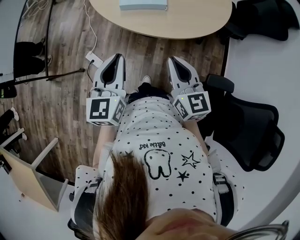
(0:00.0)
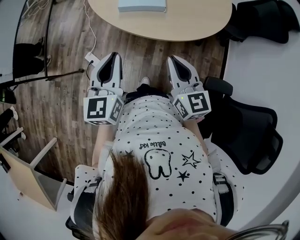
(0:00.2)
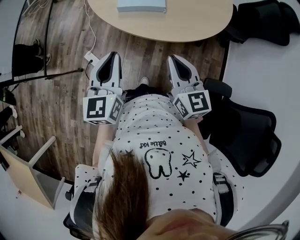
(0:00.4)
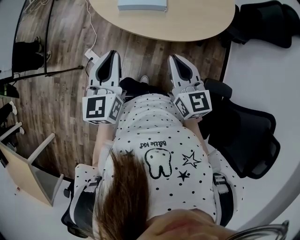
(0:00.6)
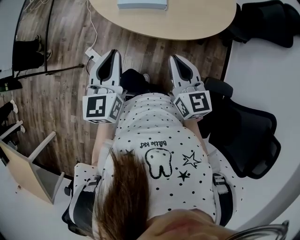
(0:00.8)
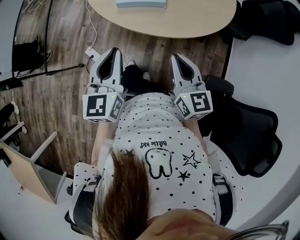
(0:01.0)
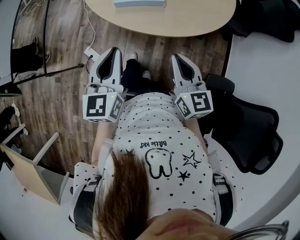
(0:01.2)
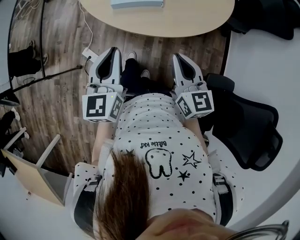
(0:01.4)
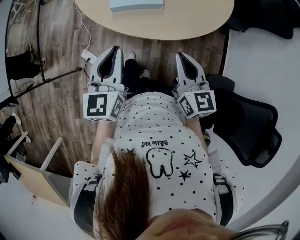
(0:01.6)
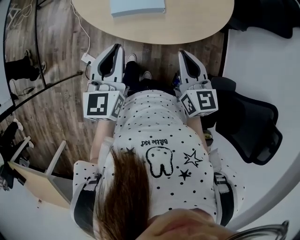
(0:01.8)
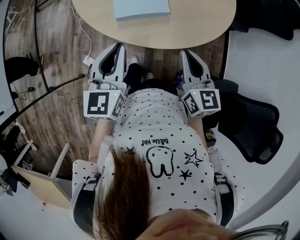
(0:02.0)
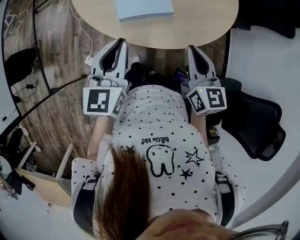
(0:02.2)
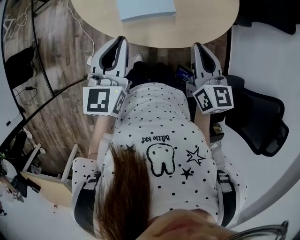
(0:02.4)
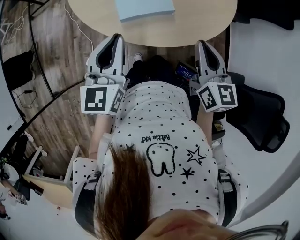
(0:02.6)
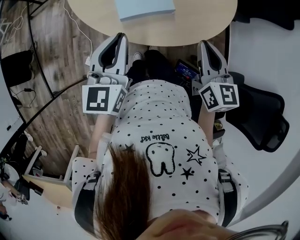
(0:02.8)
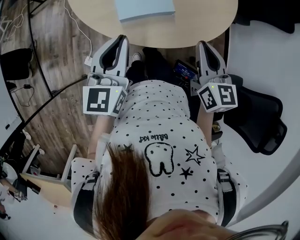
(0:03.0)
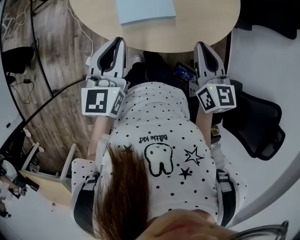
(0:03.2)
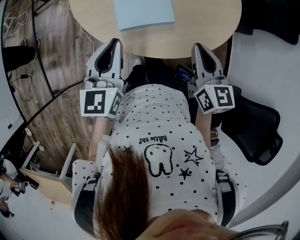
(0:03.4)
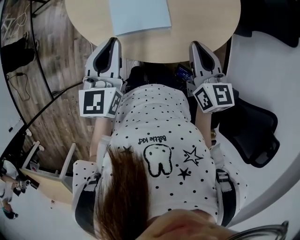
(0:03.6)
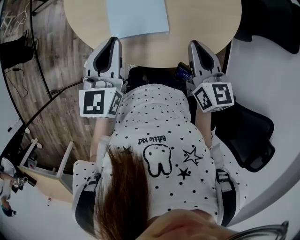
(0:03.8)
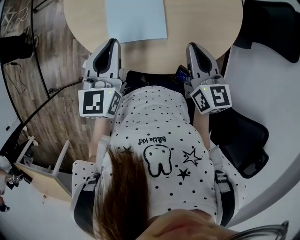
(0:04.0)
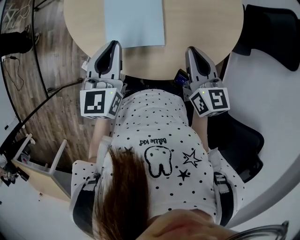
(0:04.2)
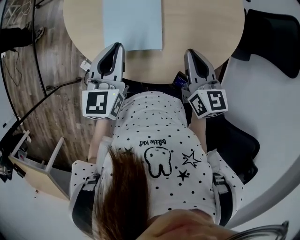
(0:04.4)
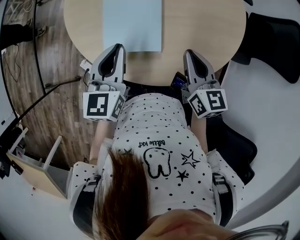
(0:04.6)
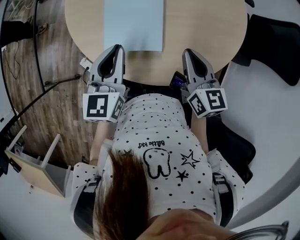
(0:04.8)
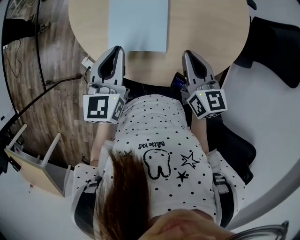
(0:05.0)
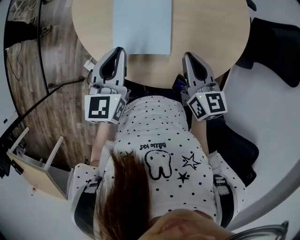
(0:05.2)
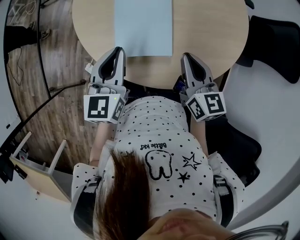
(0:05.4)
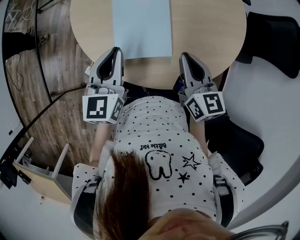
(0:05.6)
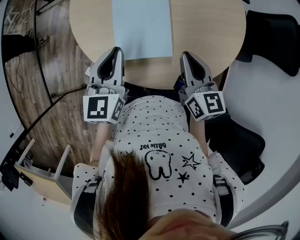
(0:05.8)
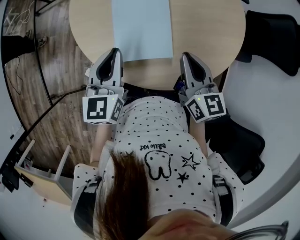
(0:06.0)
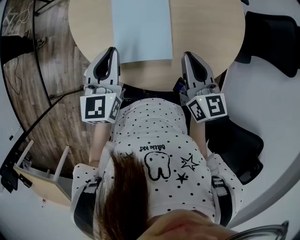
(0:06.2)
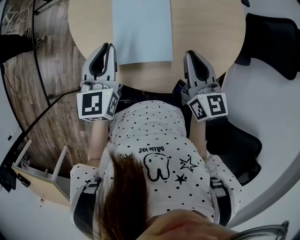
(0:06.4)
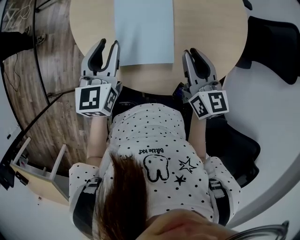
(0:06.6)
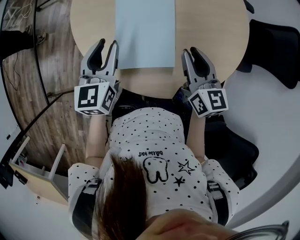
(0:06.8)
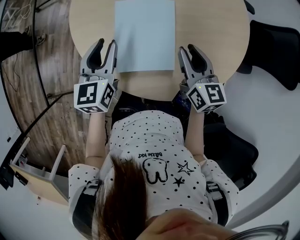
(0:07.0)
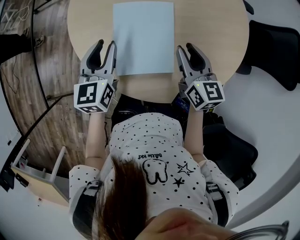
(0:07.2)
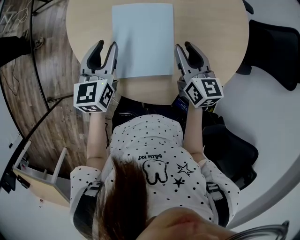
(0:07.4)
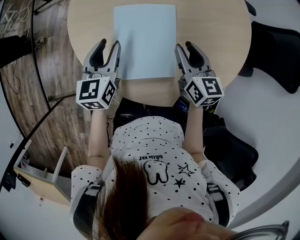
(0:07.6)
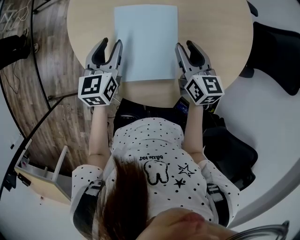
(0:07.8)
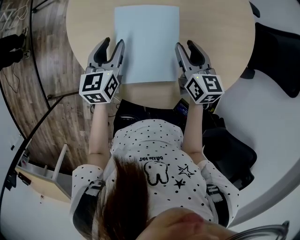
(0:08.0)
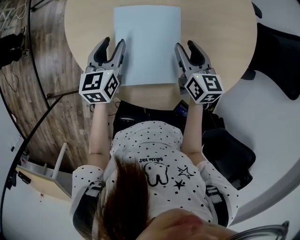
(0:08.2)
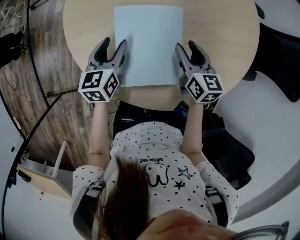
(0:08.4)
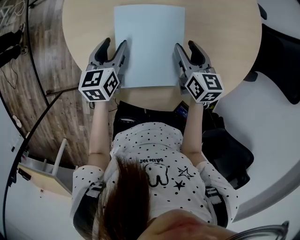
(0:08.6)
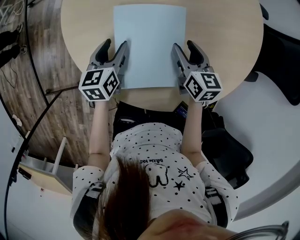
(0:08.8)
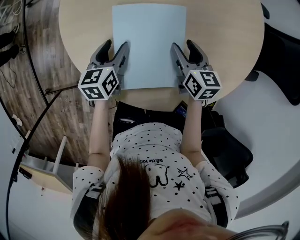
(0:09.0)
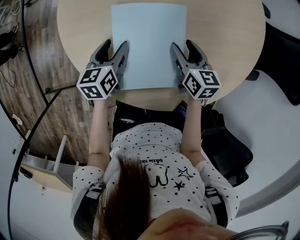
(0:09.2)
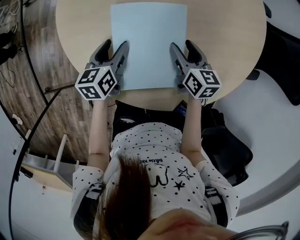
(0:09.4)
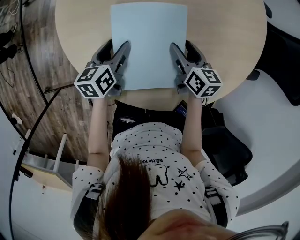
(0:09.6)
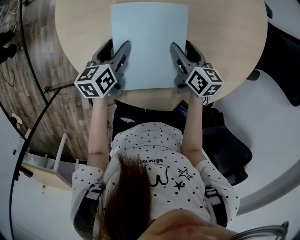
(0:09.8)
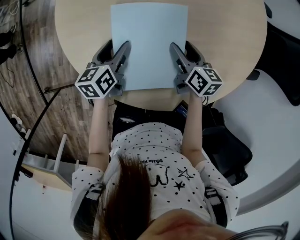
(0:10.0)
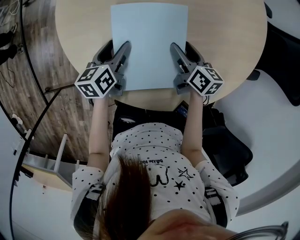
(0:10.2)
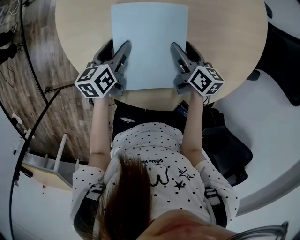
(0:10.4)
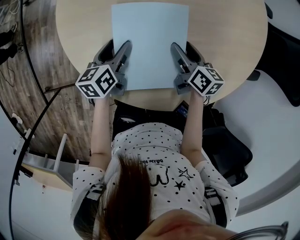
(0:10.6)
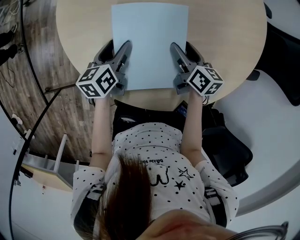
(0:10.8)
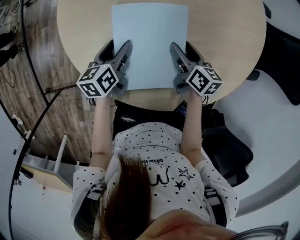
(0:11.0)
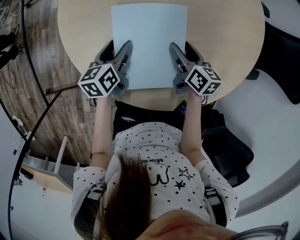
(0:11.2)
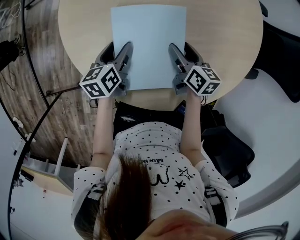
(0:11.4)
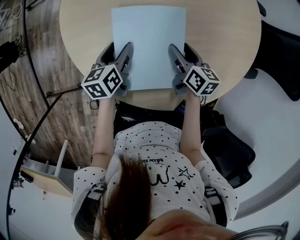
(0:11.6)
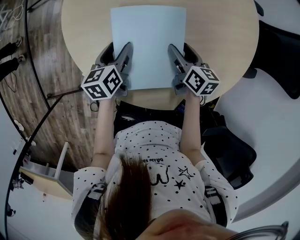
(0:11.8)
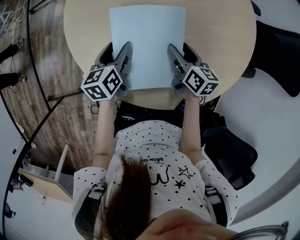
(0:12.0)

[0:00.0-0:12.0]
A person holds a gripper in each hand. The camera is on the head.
0:00.0 to 0:01.6: Both grippers travel together forward, approximately 10 cm.
0:01.6 to 0:03.0: Both grippers move forward, some 10 cm.
0:03.0 to 0:04.4: Both grippers travel together forward, some 15 cm.
0:04.4 to 0:06.0: The grippers make only small movements.
0:06.0 to 0:07.6: The grippers both shift forward and downward by approximately 15 cm. The right gripper opens up; the left gripper opens up.
0:07.6 to 0:09.0: Both grippers travel together downward, some 10 cm. The left gripper changes its angle by some 20 degrees.
0:09.0 to 0:10.4: The grippers move only a little.
0:10.4 to 0:12.0: The left gripper shifts by approximately 5 cm.

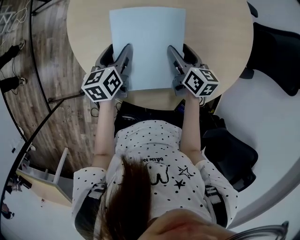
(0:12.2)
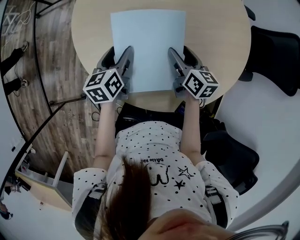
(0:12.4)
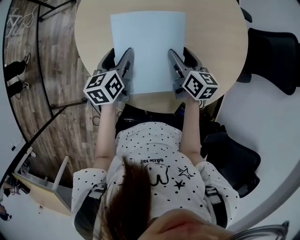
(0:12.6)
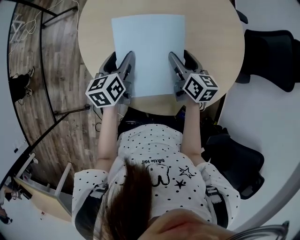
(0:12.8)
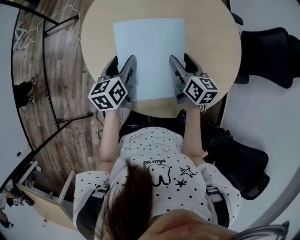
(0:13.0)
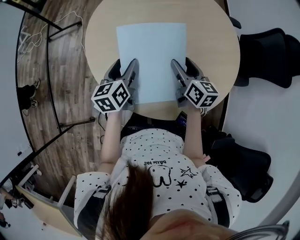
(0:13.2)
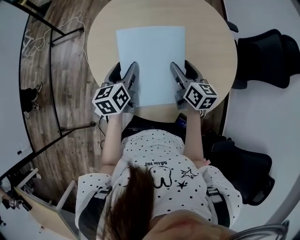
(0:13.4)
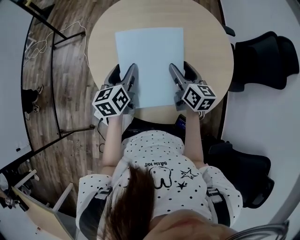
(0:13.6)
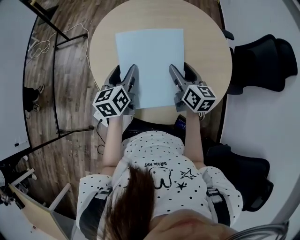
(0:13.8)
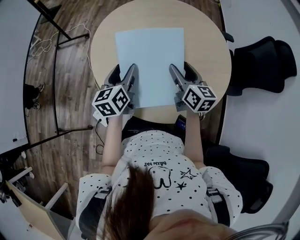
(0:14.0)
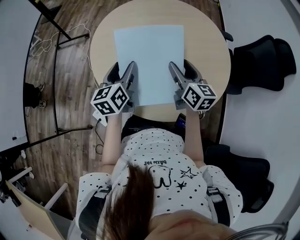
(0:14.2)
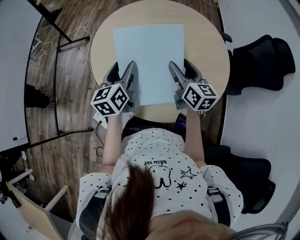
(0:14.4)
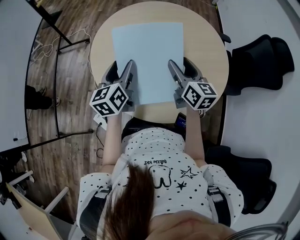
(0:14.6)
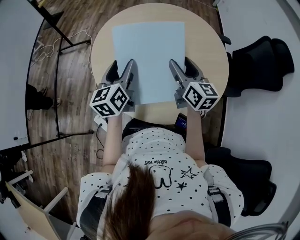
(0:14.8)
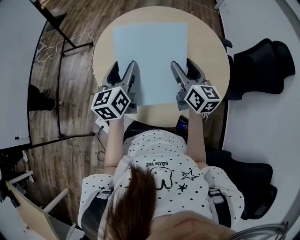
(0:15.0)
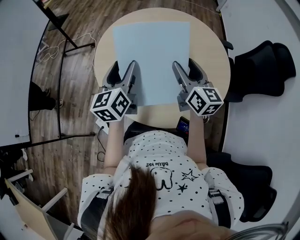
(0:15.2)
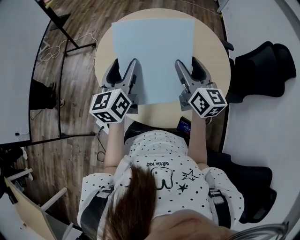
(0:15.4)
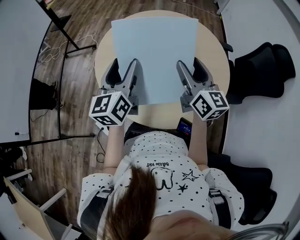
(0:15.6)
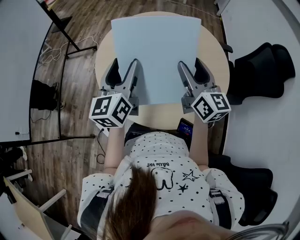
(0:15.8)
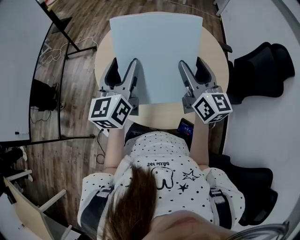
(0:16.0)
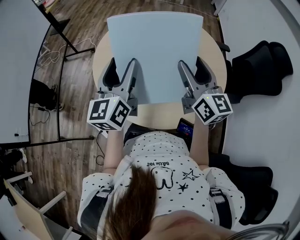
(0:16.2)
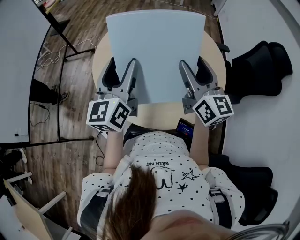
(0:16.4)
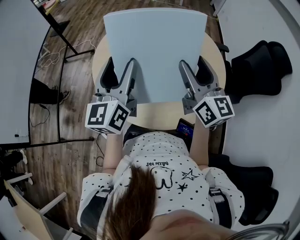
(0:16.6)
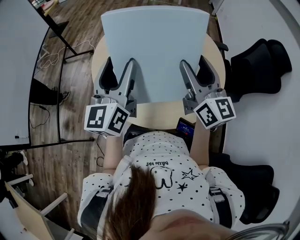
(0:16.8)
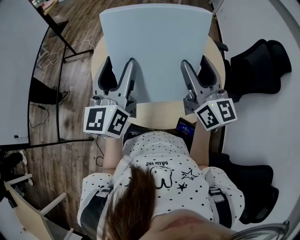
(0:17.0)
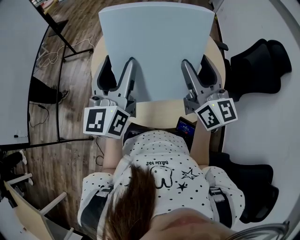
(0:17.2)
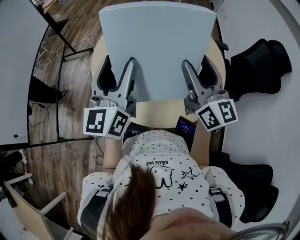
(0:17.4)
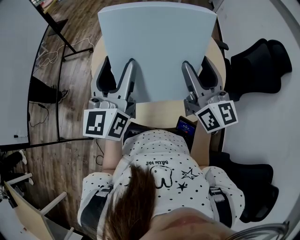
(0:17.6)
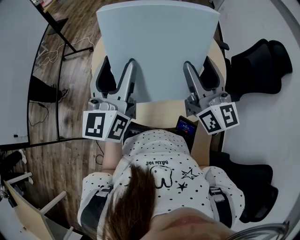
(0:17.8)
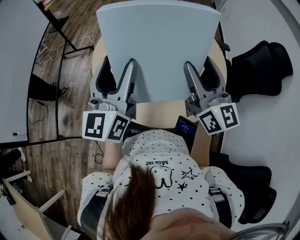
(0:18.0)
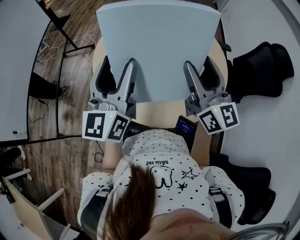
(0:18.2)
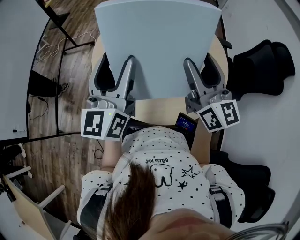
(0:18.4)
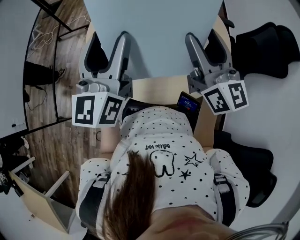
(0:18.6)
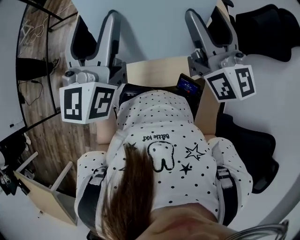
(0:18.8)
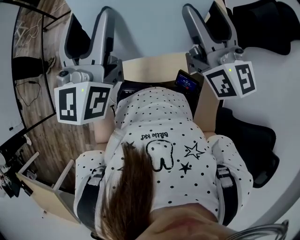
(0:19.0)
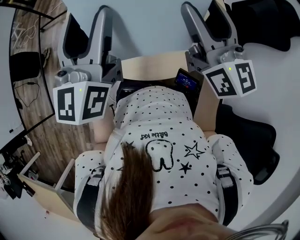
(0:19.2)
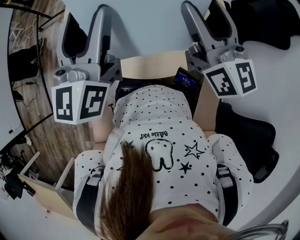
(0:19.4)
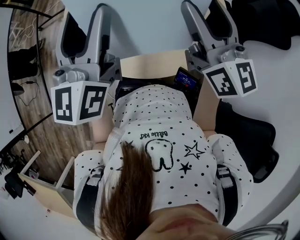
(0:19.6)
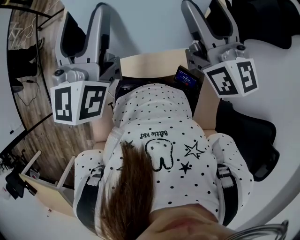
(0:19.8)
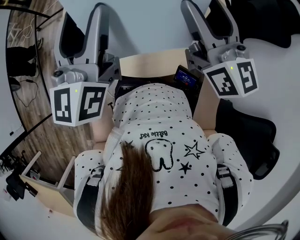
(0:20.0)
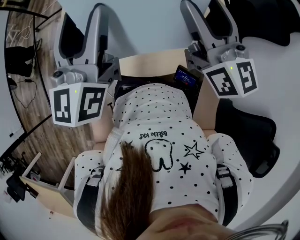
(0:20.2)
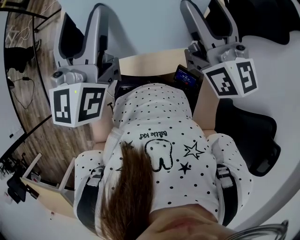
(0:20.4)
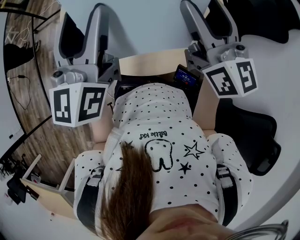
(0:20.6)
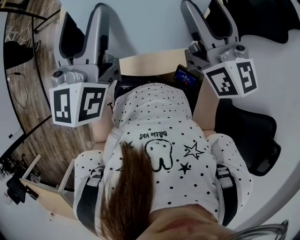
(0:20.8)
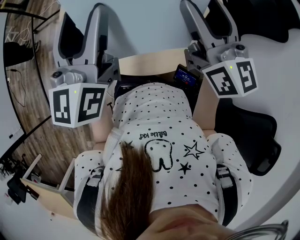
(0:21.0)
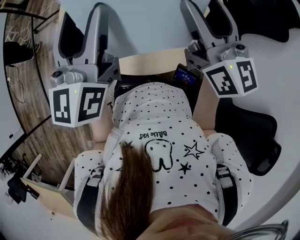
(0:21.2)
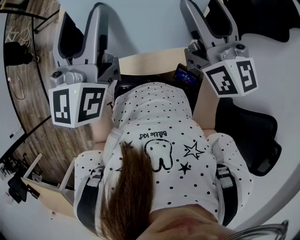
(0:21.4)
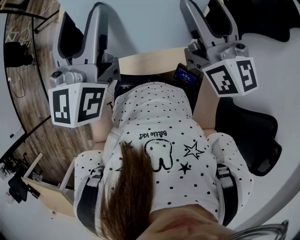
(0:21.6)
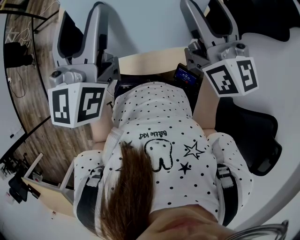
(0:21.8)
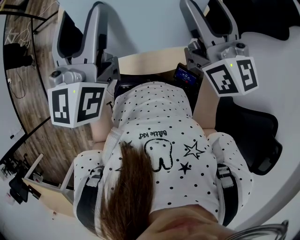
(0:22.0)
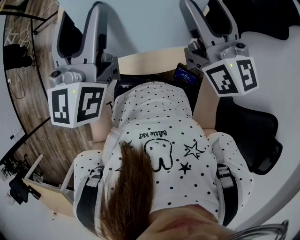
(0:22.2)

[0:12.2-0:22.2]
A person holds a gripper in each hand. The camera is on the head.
0:12.2 to 0:13.6: Both grippers move upward, roughly 15 cm.
0:13.6 to 0:15.0: Both grippers move upward, approximately 10 cm.
0:15.0 to 0:16.4: Both grippers travel together upward, some 10 cm.
0:16.4 to 0:19.4: The grippers make only small movements.
0:19.4 to 0:20.8: Both grippers stay put.
0:20.8 to 0:22.2: Both grippers stay about where they are.

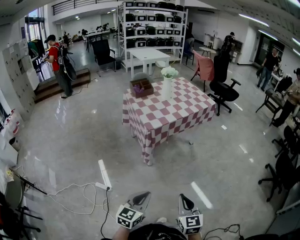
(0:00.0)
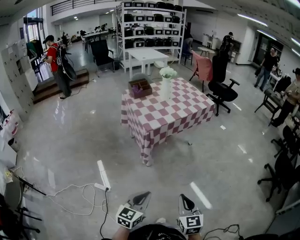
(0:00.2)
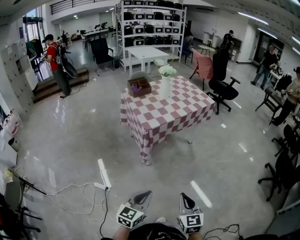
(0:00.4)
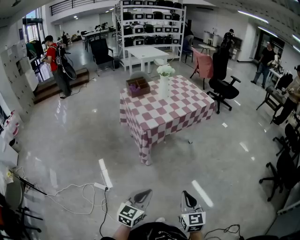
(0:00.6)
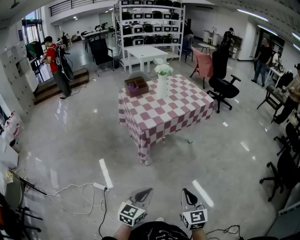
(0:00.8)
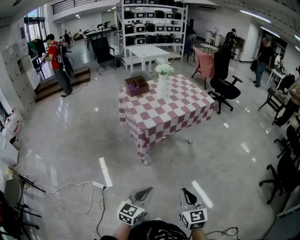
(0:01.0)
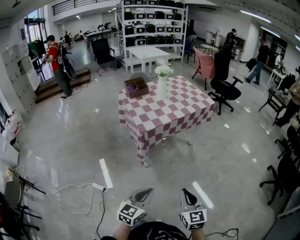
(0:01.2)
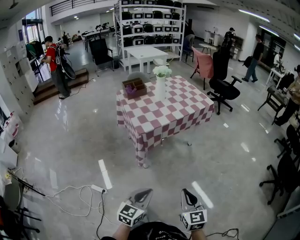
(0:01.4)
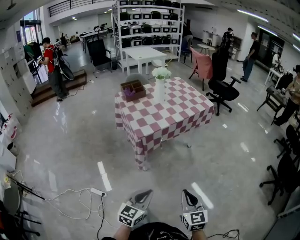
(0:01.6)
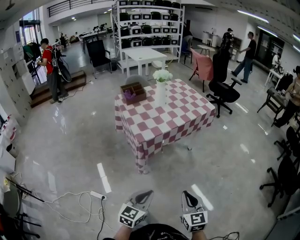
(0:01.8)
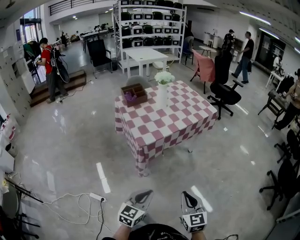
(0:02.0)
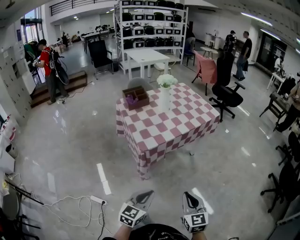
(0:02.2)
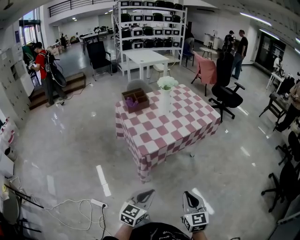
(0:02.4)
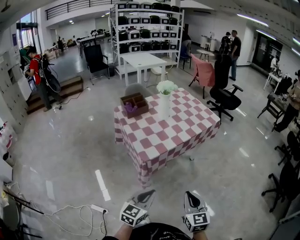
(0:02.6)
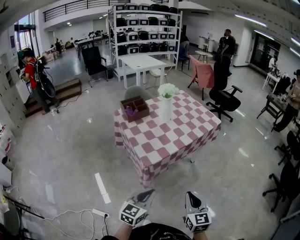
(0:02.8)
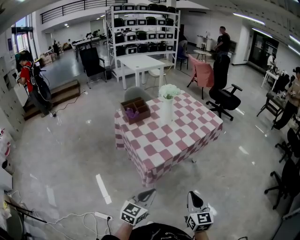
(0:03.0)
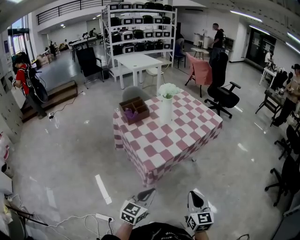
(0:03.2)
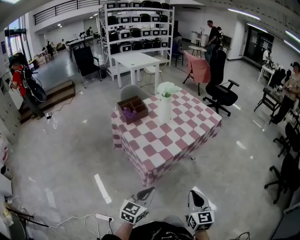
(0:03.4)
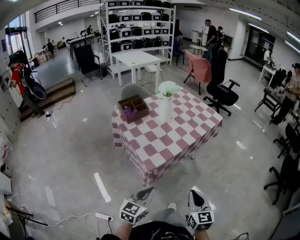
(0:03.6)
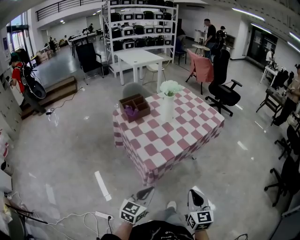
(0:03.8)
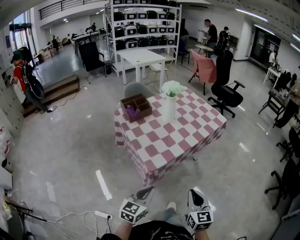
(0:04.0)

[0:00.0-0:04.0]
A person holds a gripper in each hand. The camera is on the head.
0:00.0 to 0:01.4: Both grippers move forward and to the right, approximately 10 cm.
0:01.4 to 0:02.6: The two grippers go some 20 cm forward and to the left.
0:02.6 to 0:04.0: The right gripper heads forward, covering some 5 cm. Meanwhile the left gripper moves to the left and forward, some 10 cm.
